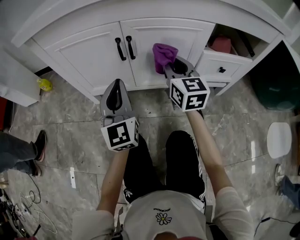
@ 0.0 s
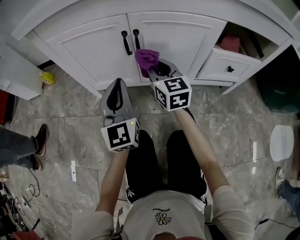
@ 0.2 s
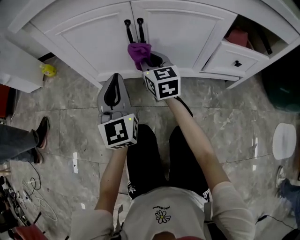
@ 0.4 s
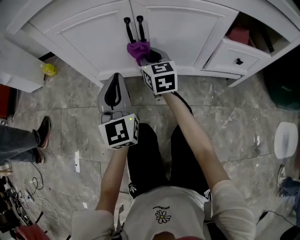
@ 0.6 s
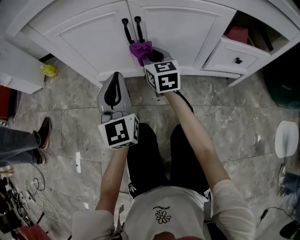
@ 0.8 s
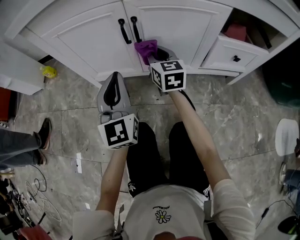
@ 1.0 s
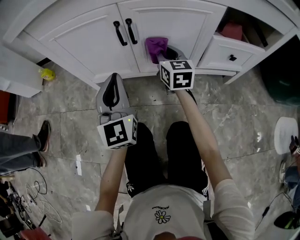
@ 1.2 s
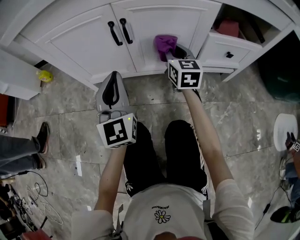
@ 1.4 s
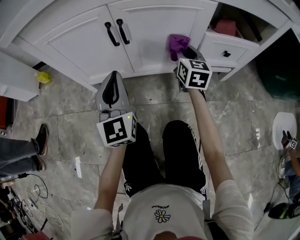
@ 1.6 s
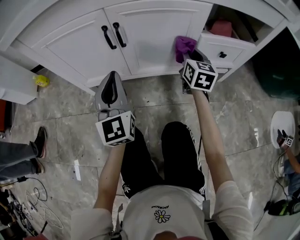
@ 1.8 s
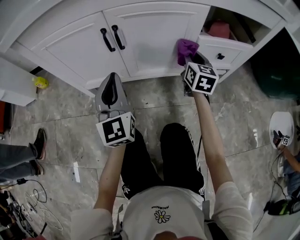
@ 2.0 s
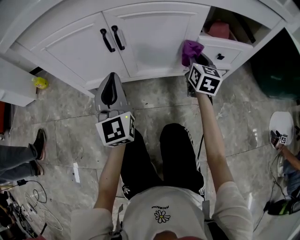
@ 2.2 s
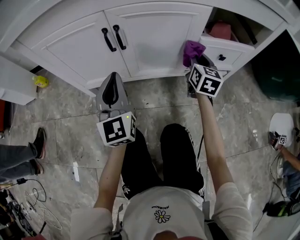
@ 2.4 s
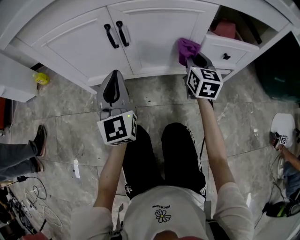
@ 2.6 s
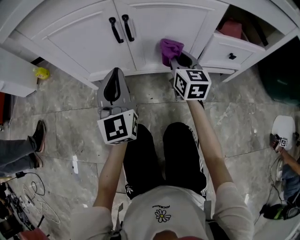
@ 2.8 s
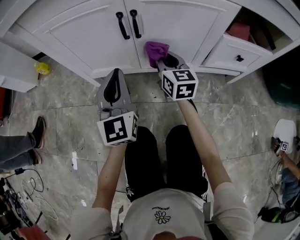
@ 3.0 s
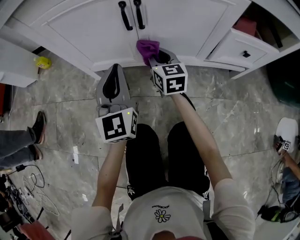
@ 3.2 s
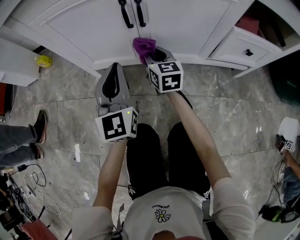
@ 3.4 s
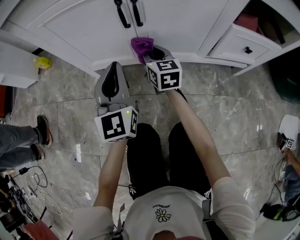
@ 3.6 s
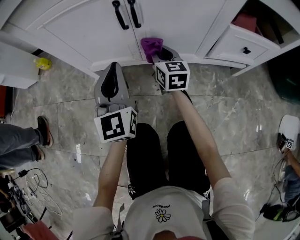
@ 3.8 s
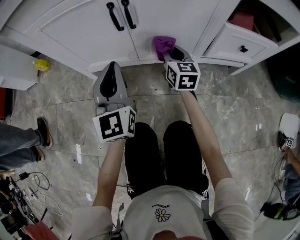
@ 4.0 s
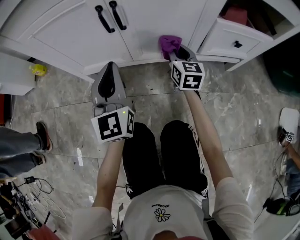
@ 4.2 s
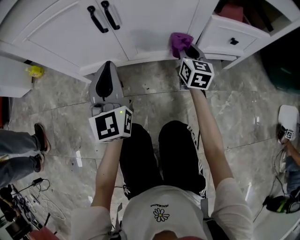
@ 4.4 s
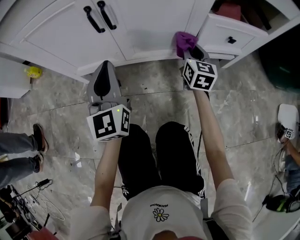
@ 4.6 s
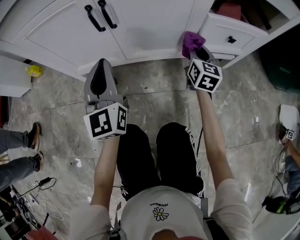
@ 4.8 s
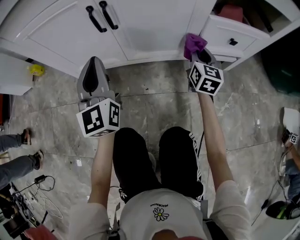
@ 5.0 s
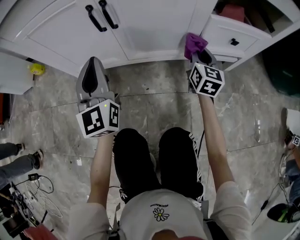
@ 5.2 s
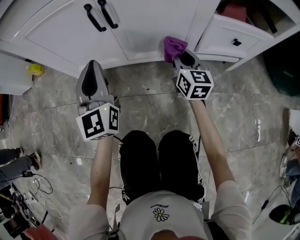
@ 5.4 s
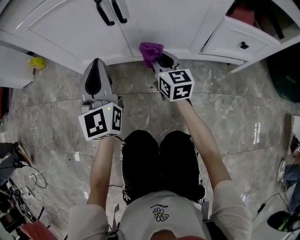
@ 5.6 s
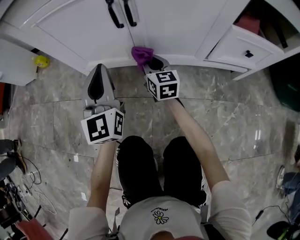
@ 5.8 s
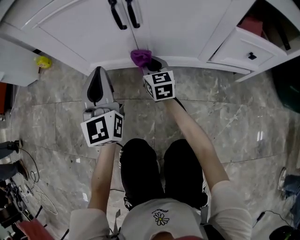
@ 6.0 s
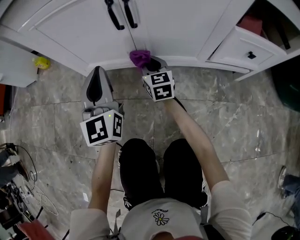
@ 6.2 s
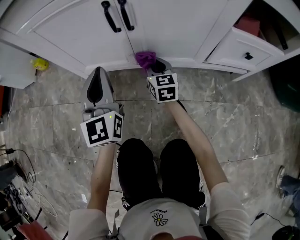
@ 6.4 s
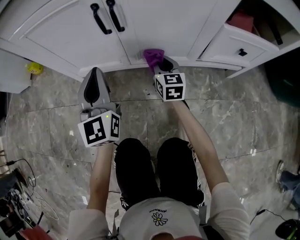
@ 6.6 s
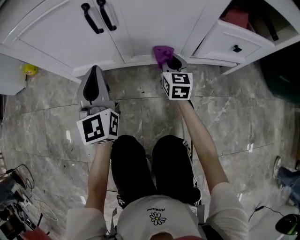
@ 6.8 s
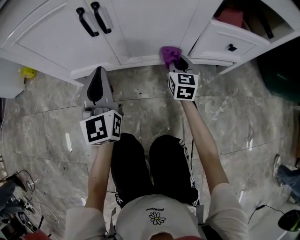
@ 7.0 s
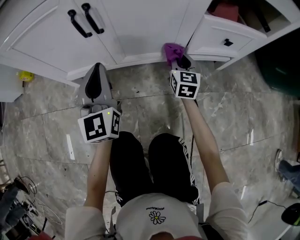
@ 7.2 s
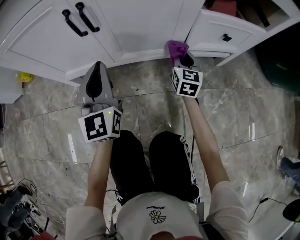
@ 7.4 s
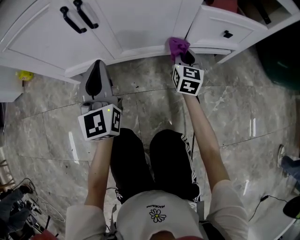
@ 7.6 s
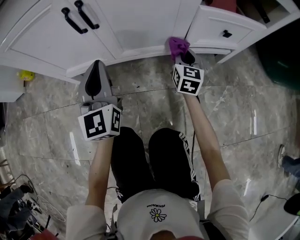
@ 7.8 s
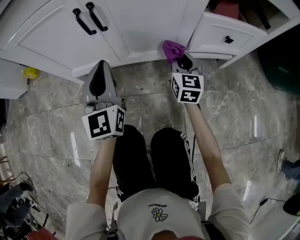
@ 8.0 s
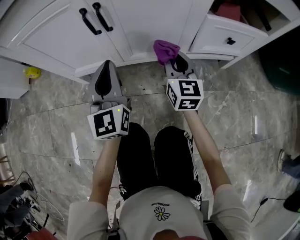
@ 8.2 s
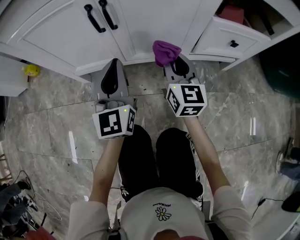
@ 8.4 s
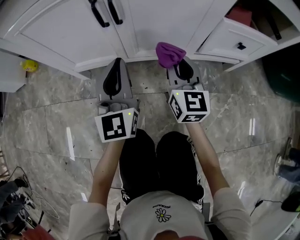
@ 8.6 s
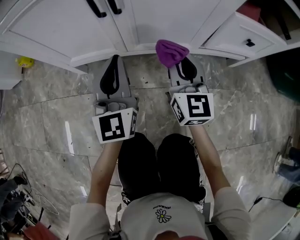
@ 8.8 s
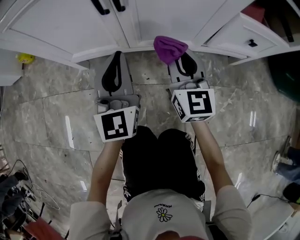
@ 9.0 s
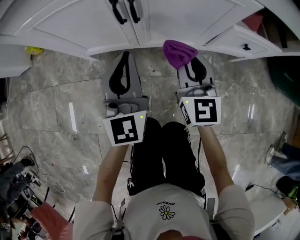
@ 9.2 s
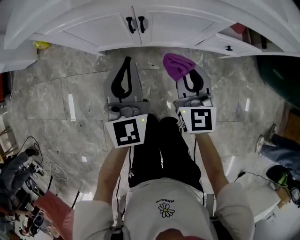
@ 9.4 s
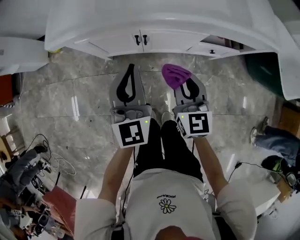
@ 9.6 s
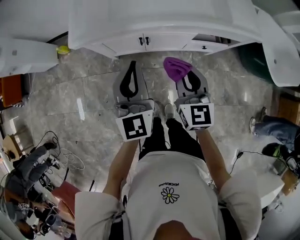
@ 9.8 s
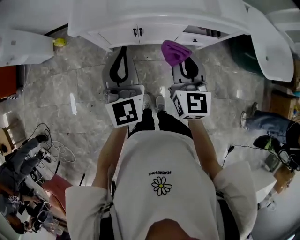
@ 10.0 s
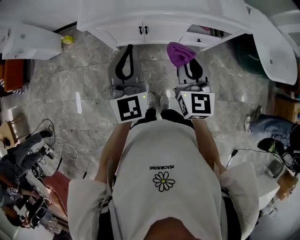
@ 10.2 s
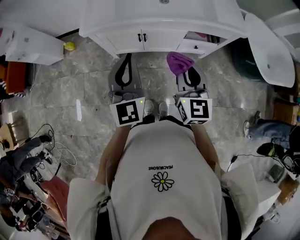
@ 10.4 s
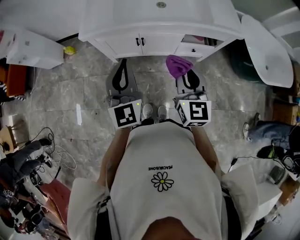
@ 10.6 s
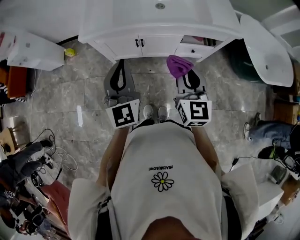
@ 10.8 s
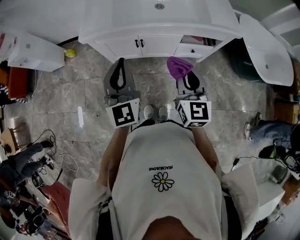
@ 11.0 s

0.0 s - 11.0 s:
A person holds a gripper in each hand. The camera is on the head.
0.0 s - 1.6 s: The right gripper is displaced downward and to the right by approximately 10 cm.
1.6 s - 3.2 s: The right gripper is displaced to the left and downward by about 20 cm, while the left gripper shifts by approximately 5 cm.
3.2 s - 4.8 s: The right gripper heads to the right, covering about 25 cm, and turns by roughly 30 degrees.
4.8 s - 6.2 s: The right gripper travels to the left by roughly 25 cm, and changes its angle by some 30 degrees. Meanwhile the left gripper is displaced to the left by roughly 5 cm.
6.2 s - 7.8 s: The left gripper moves to the right, some 10 cm; the right gripper goes approximately 25 cm to the right, and swivels roughly 30 degrees.
7.8 s - 9.4 s: The left gripper heads upward, covering approximately 20 cm; the right gripper heads upward and to the left, covering about 35 cm, and turns by roughly 20 degrees.
9.4 s - 11.0 s: The grippers both shift upward and backward by approximately 40 cm.

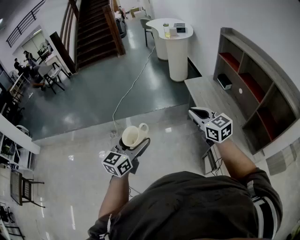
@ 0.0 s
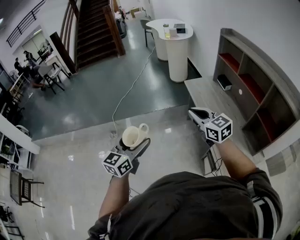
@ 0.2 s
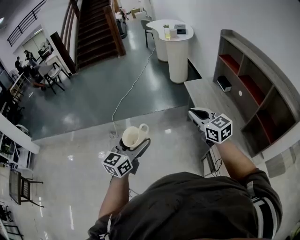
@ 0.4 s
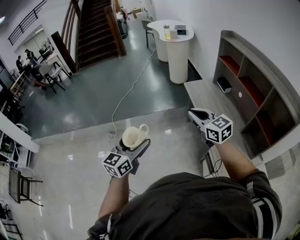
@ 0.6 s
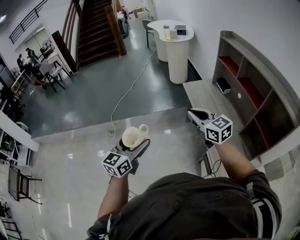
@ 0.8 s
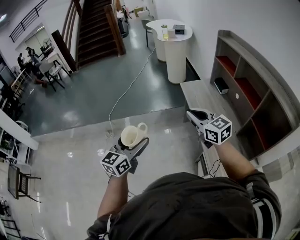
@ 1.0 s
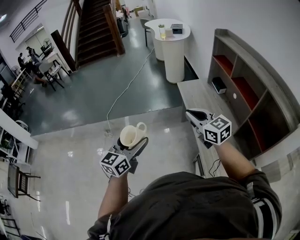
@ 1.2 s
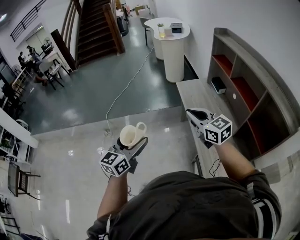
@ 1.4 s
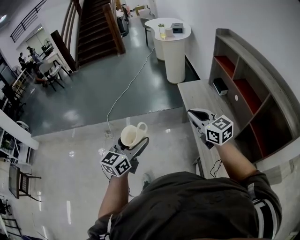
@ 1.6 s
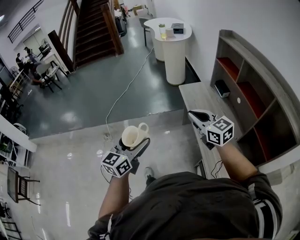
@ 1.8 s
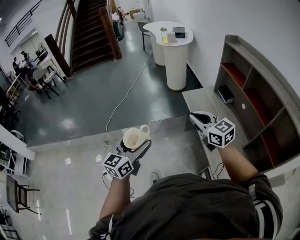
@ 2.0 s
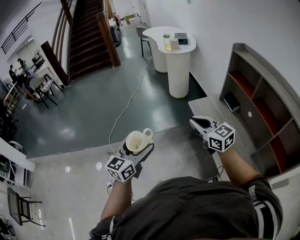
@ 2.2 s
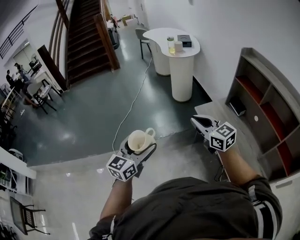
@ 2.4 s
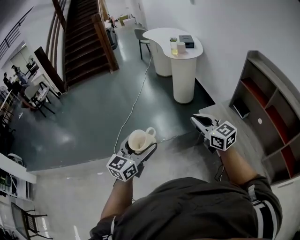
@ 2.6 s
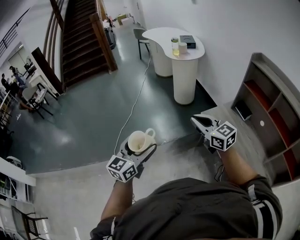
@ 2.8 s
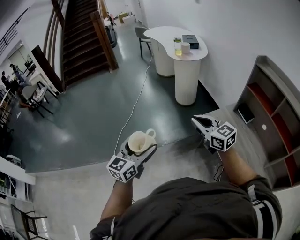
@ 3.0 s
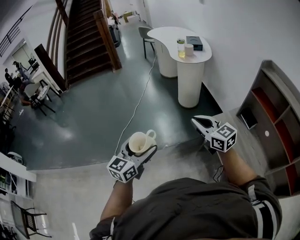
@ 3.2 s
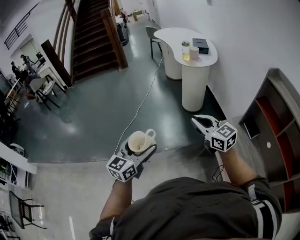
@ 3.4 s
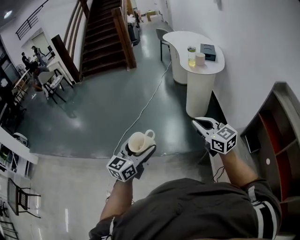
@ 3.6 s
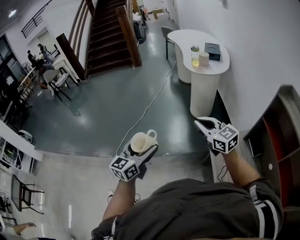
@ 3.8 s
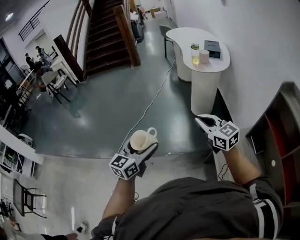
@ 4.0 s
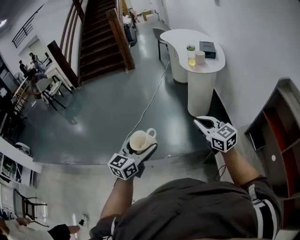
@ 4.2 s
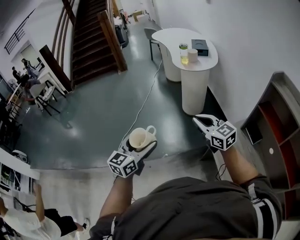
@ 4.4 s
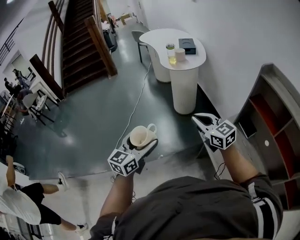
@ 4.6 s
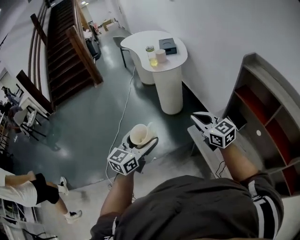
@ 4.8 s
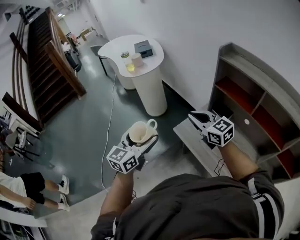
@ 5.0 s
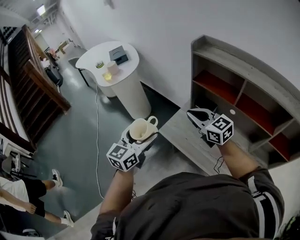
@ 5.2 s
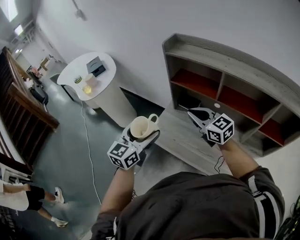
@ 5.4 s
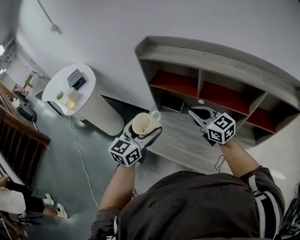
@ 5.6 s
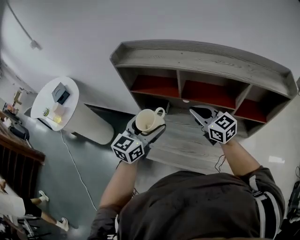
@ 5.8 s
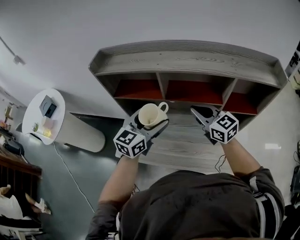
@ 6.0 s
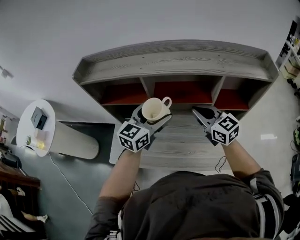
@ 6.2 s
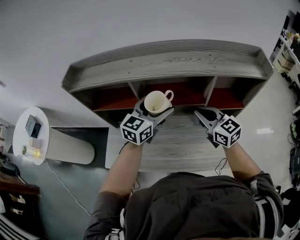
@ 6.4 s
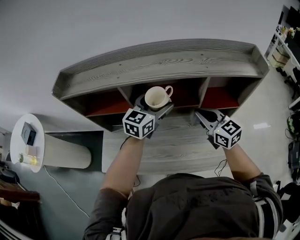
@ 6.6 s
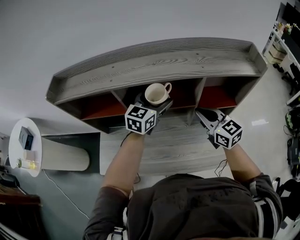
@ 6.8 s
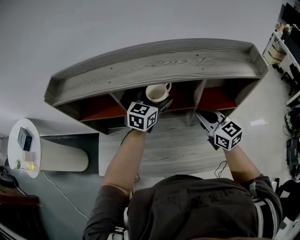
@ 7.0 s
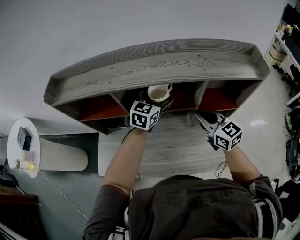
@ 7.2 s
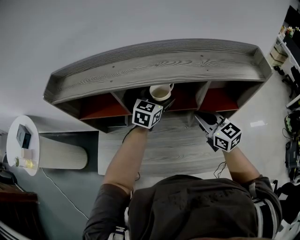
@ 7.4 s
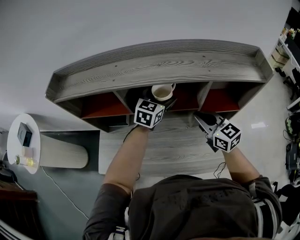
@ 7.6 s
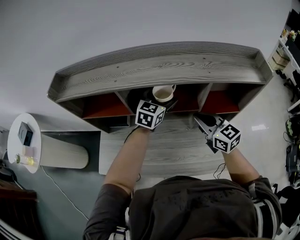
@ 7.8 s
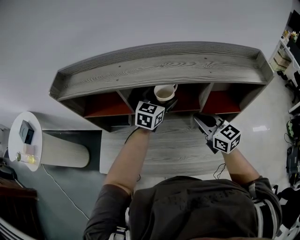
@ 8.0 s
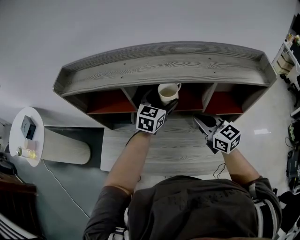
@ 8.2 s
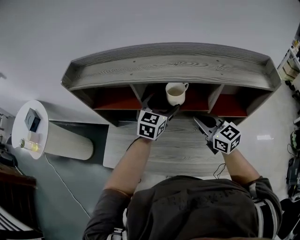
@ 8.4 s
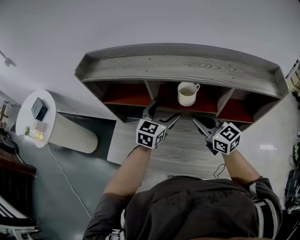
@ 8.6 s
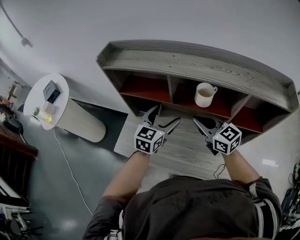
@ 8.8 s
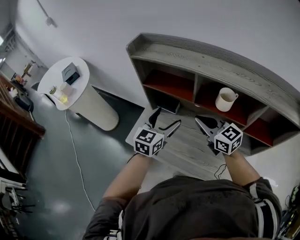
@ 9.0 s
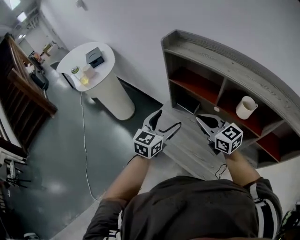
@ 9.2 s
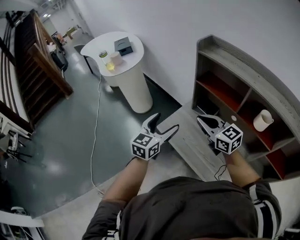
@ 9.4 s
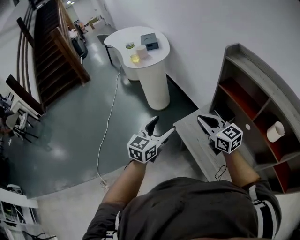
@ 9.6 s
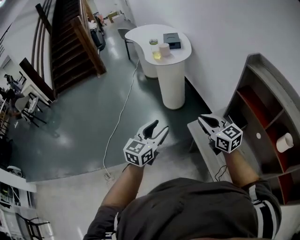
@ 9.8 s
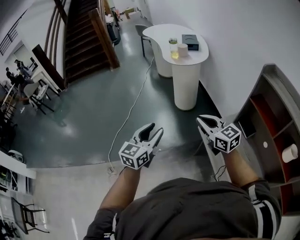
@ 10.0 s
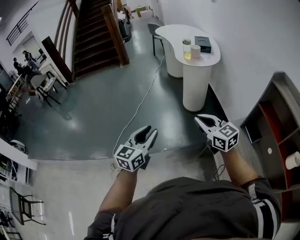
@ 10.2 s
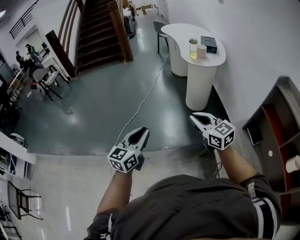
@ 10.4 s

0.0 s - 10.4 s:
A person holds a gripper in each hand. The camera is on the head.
0.0 s - 1.4 s: The grippers both shift to the right by about 10 cm.
1.4 s - 3.0 s: Both grippers are carried forward and to the left, roughly 50 cm.
3.0 s - 4.4 s: Both grippers travel together forward and to the right, roughly 15 cm.
4.4 s - 6.0 s: The two grippers travel together, about 60 cm. The right gripper rotates some 70 degrees. Meanwhile the left gripper changes its angle by approximately 70 degrees.
6.0 s - 7.4 s: The left gripper moves forward and to the right, some 25 cm. Meanwhile the right gripper shifts about 15 cm to the right.
7.4 s - 9.0 s: The left gripper ends up about 30 cm from where it was, and turns by about 30 degrees. Meanwhile the right gripper changes place by approximately 25 cm, and swivels roughly 30 degrees.
9.0 s - 10.4 s: The two grippers travel together, roughly 60 cm. The right gripper rotates roughly 50 degrees; the left gripper turns by some 60 degrees, and closes.

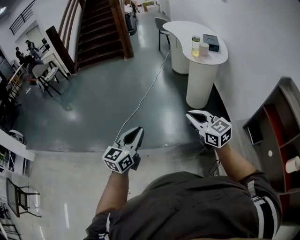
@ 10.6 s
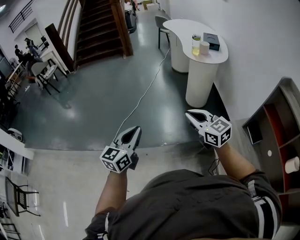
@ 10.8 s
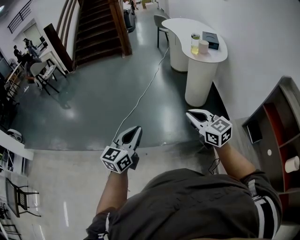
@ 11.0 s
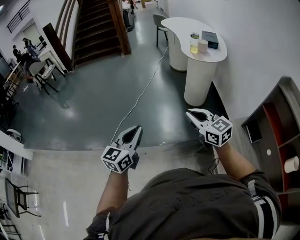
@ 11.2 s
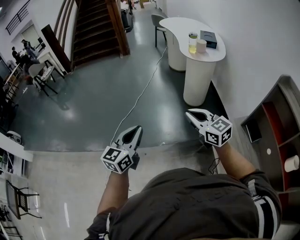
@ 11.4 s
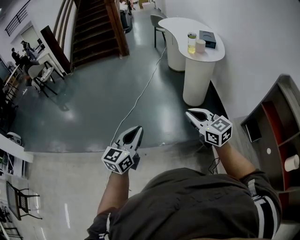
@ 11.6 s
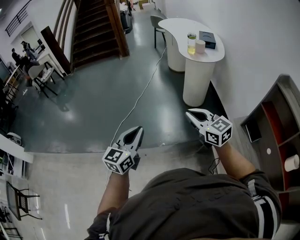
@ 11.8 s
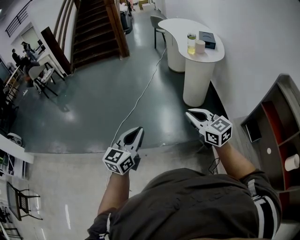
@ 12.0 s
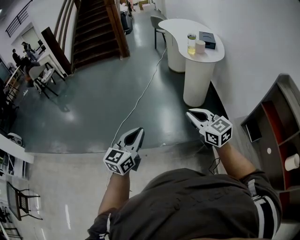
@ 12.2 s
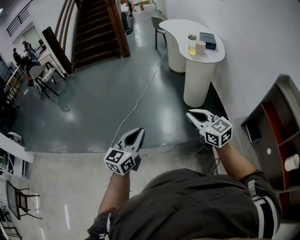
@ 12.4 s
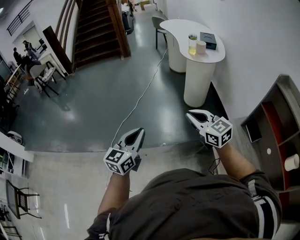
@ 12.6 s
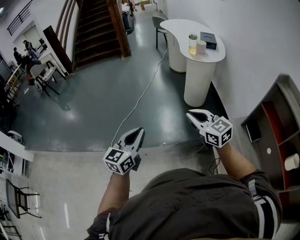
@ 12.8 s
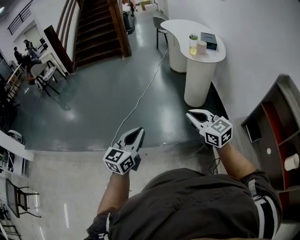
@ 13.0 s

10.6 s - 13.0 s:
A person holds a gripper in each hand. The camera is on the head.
10.6 s - 13.0 s: There are only small adjustments of the grippers.
